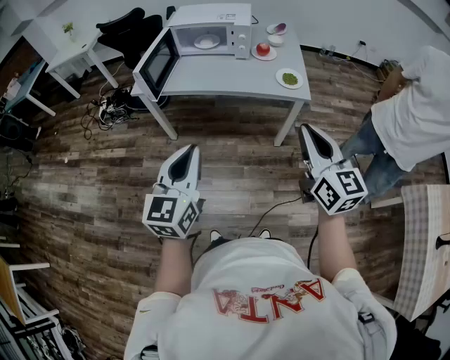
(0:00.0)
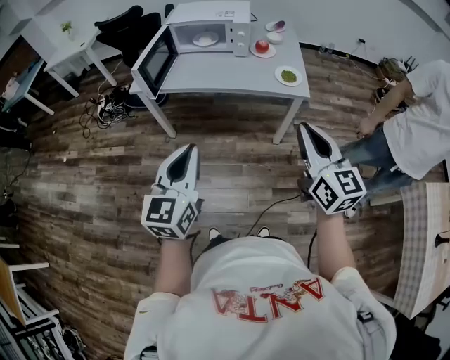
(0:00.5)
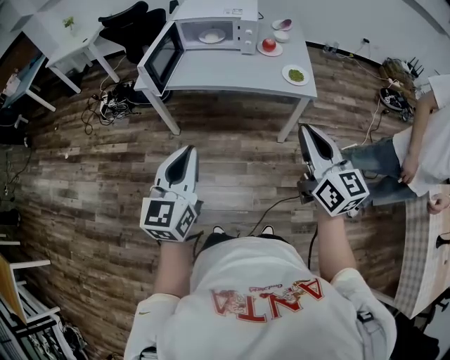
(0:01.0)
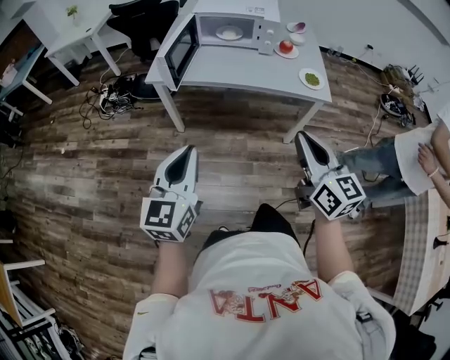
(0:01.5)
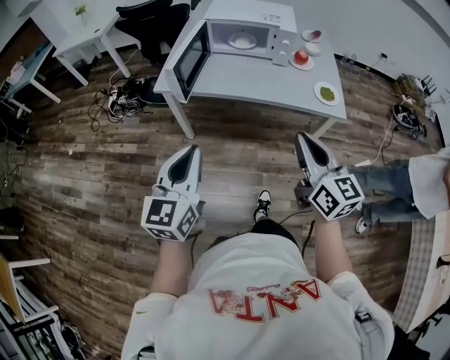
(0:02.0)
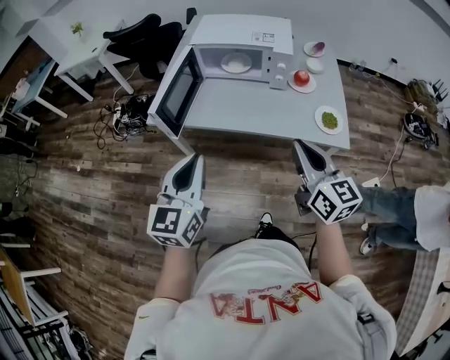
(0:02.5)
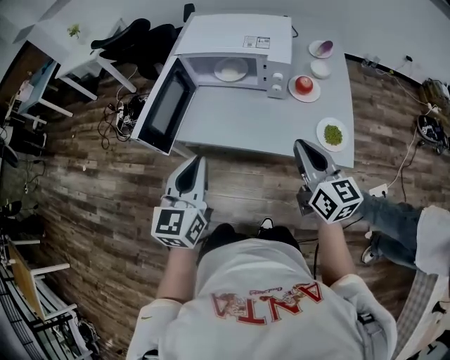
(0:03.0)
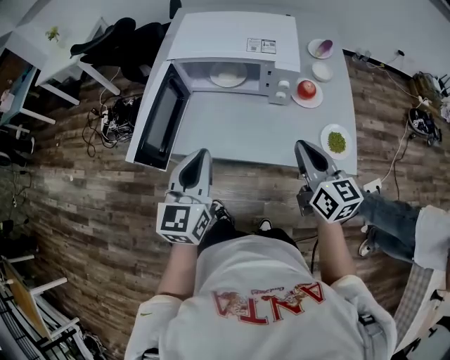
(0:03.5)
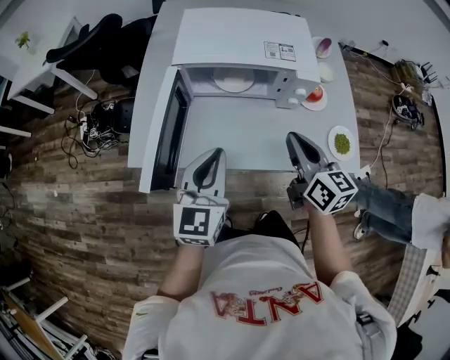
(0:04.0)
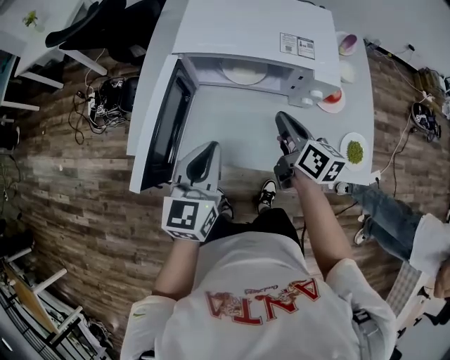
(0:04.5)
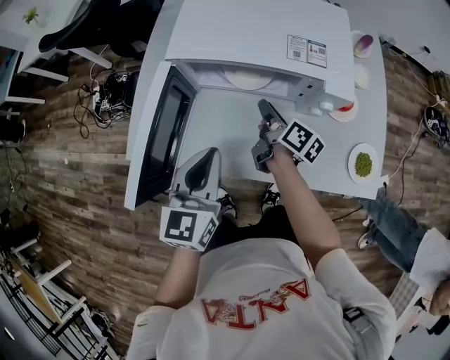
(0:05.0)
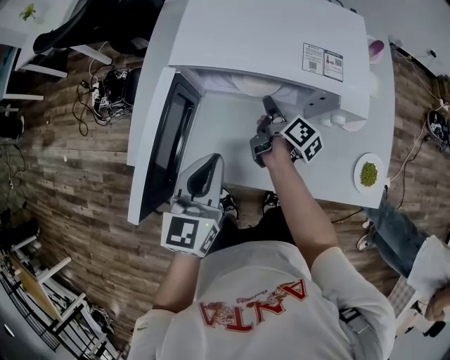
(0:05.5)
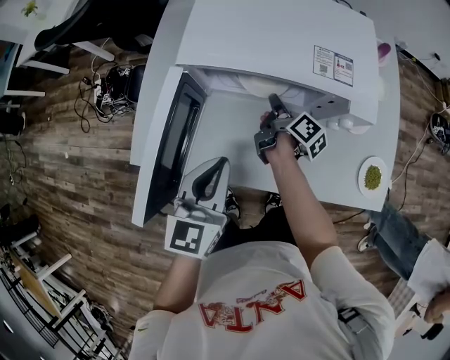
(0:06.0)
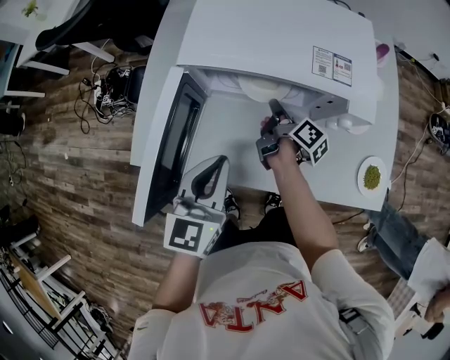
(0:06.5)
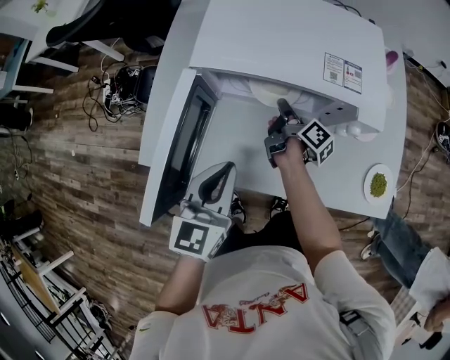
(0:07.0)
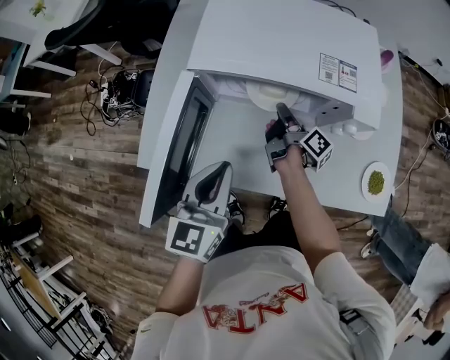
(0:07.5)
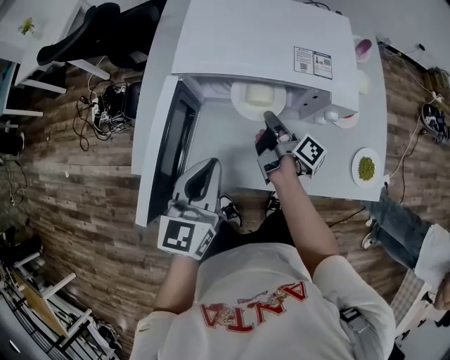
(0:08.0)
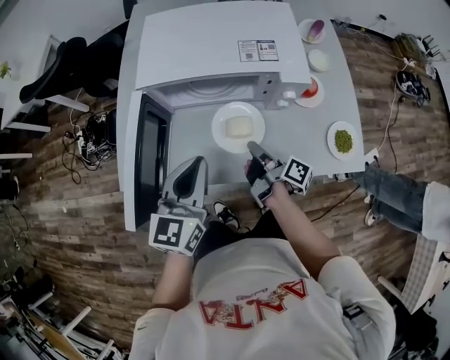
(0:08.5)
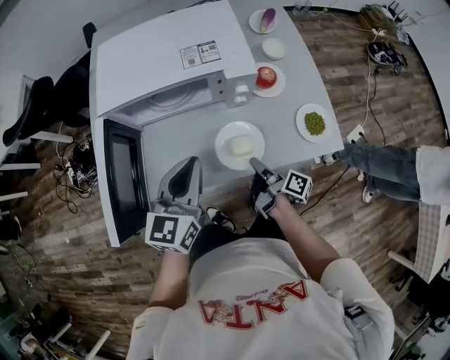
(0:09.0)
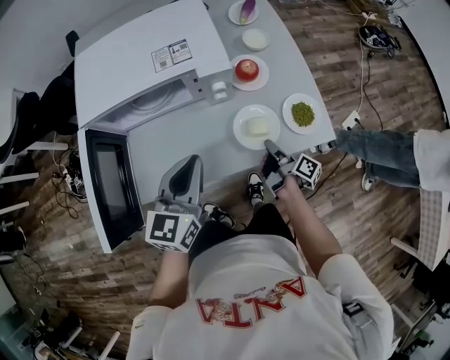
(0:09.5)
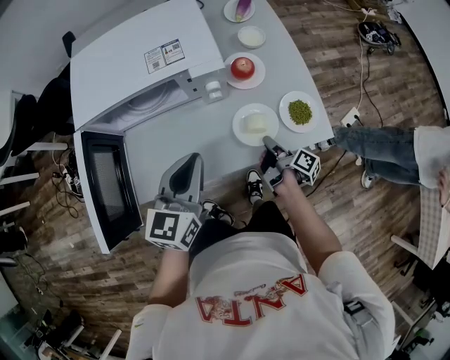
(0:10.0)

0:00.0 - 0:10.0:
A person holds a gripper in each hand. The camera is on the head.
0:00.0 - 0:02.0: The two grippers go roughly 20 cm to the left and forward.
0:02.0 - 0:04.0: The pair of grippers is taken forward, about 40 cm.
0:04.0 - 0:06.0: The right gripper heads forward and downward, covering about 30 cm, and rotates around the line of its fingers by approximately 60 degrees, clockwise from behind. The left gripper is displaced forward and downward by some 10 cm.
0:06.0 - 0:08.0: The right gripper travels backward by approximately 5 cm.
0:08.0 - 0:10.0: The right gripper shifts approximately 30 cm to the right and backward. The left gripper moves to the right, some 20 cm, and swivels roughly 20 degrees.

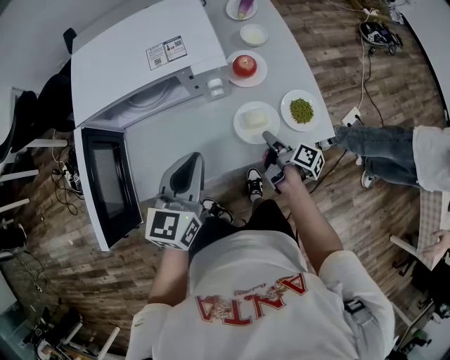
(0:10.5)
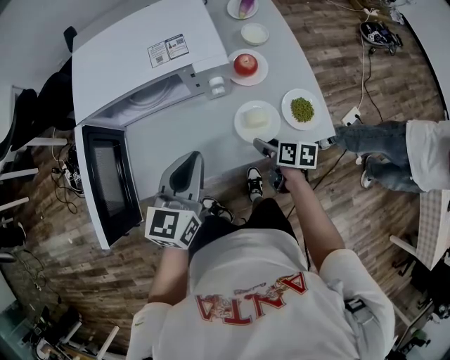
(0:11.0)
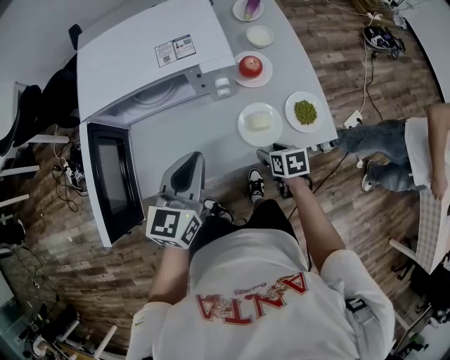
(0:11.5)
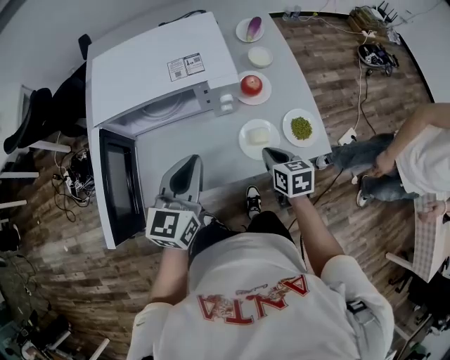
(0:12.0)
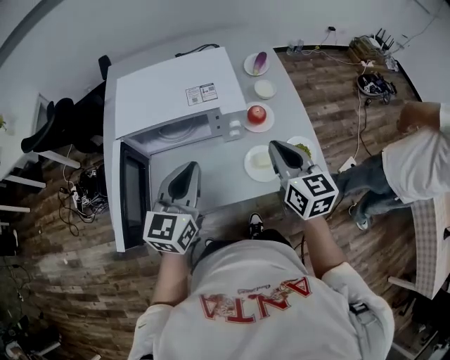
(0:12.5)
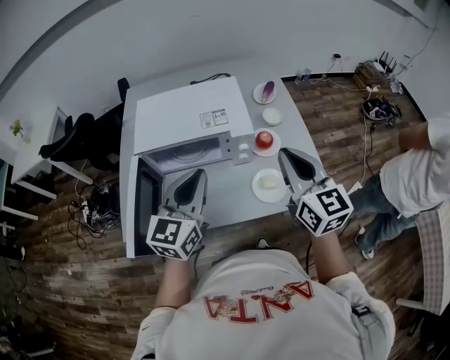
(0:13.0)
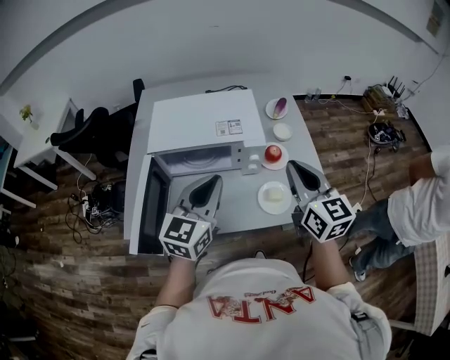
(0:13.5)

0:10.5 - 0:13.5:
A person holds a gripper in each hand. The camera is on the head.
0:10.5 - 0:12.0: The right gripper shifts some 10 cm upward, rotates around the line of its fingers by approximately 60 degrees, counterclockwise from behind, and closes.
0:12.0 - 0:13.5: The left gripper goes about 10 cm upward; the right gripper moves upward, approximately 30 cm, and points its fingers roughly 40 degrees further upward.

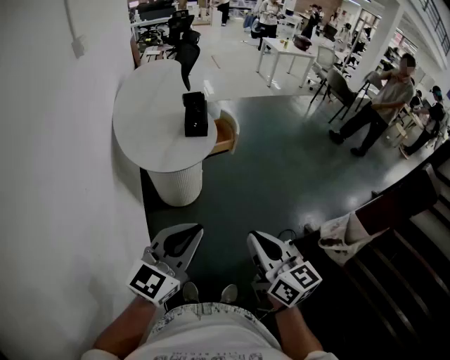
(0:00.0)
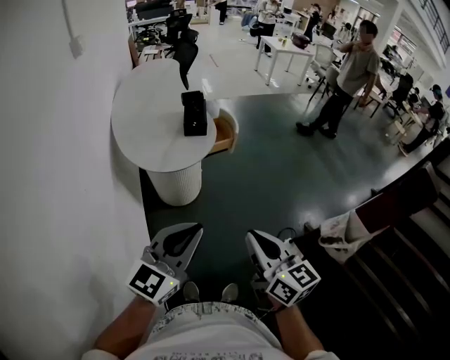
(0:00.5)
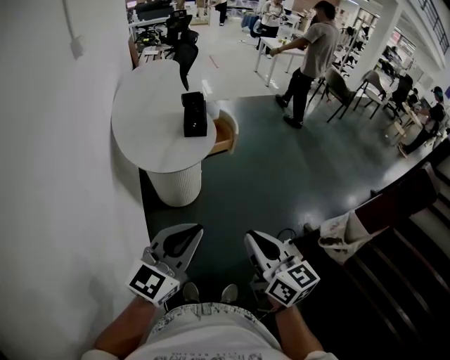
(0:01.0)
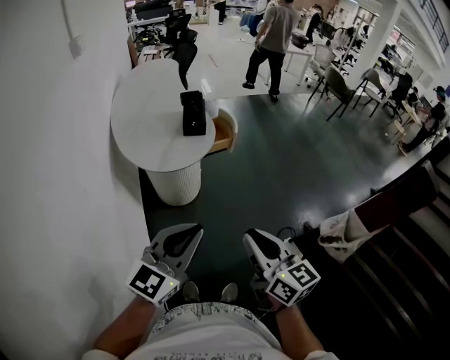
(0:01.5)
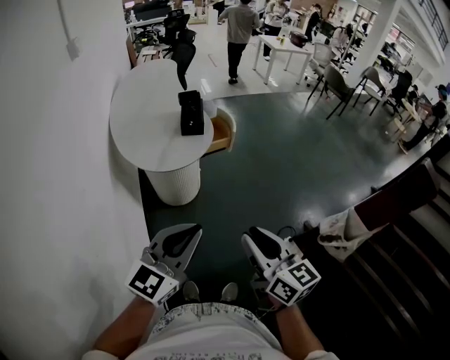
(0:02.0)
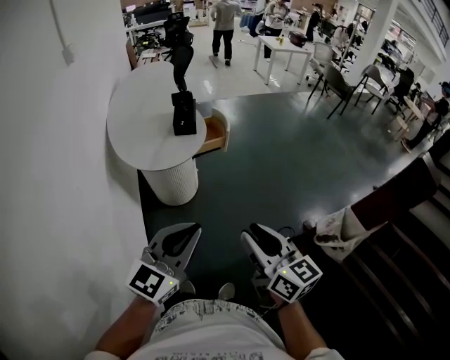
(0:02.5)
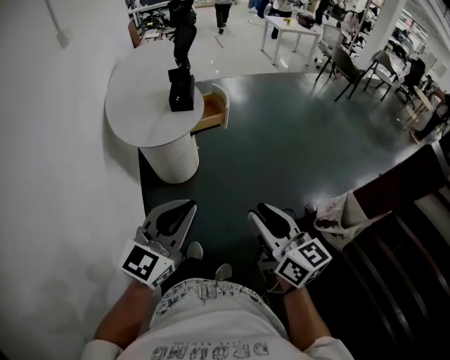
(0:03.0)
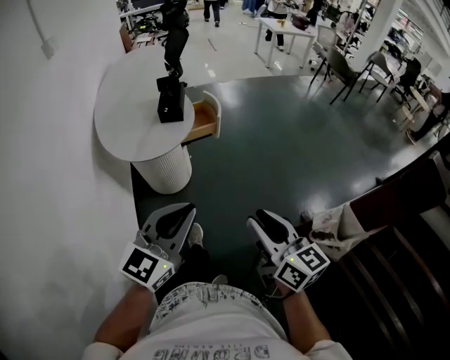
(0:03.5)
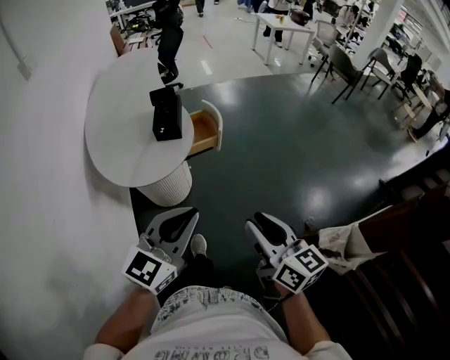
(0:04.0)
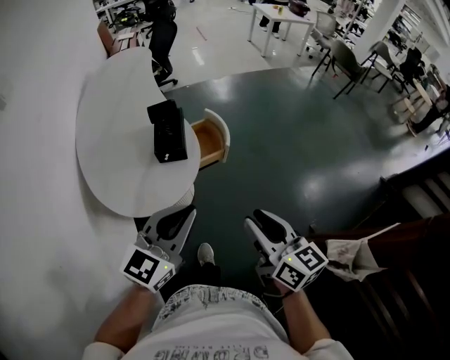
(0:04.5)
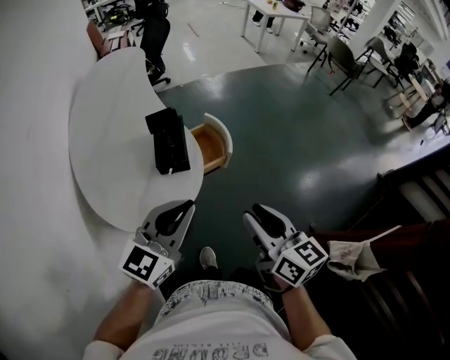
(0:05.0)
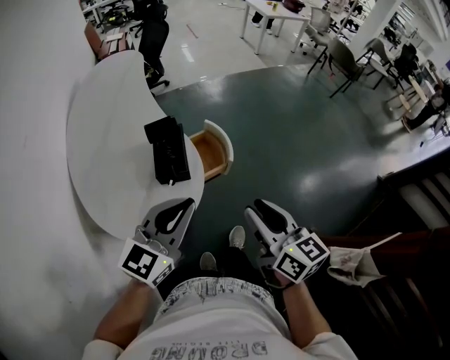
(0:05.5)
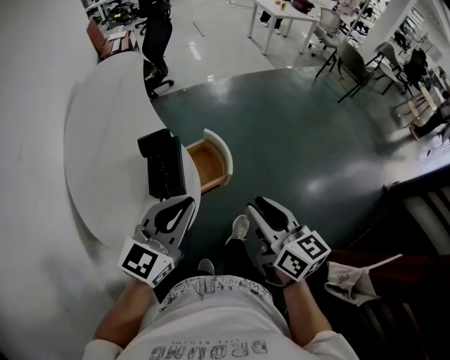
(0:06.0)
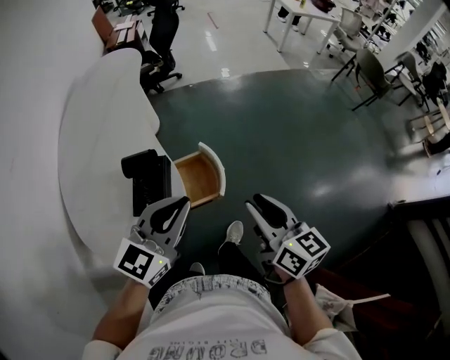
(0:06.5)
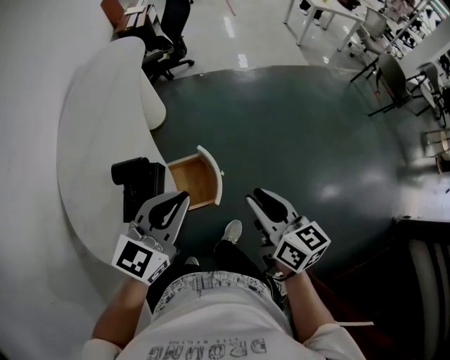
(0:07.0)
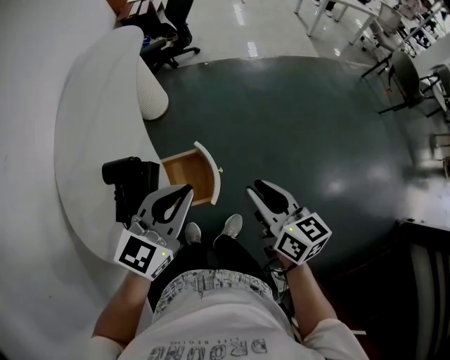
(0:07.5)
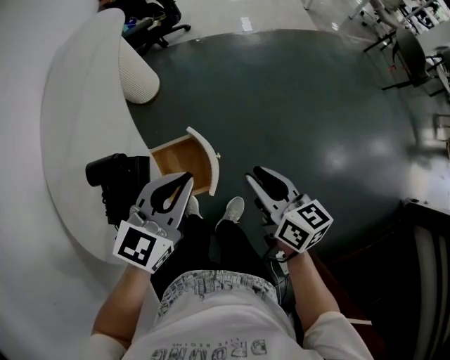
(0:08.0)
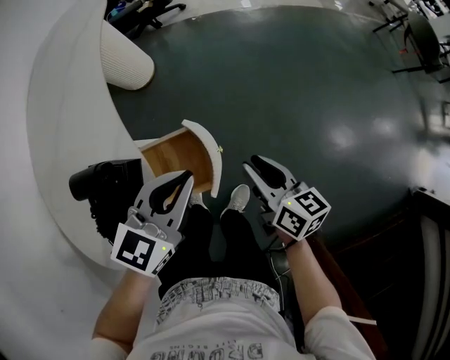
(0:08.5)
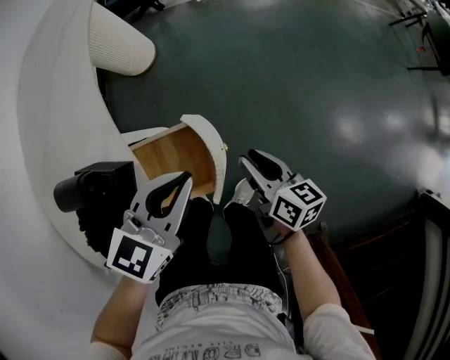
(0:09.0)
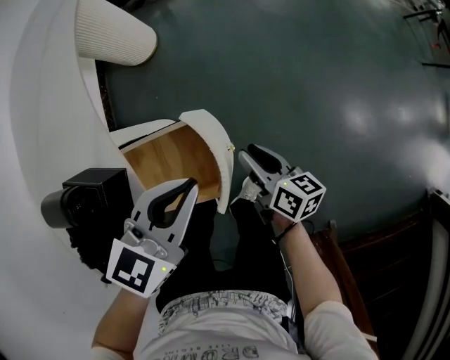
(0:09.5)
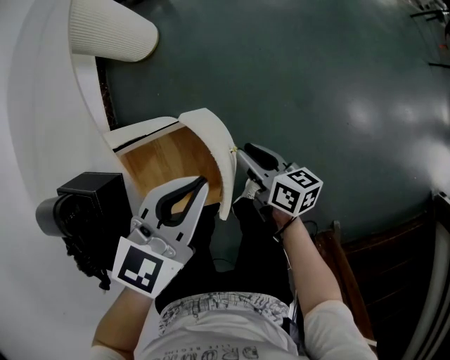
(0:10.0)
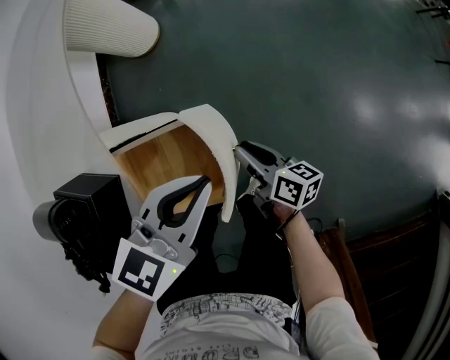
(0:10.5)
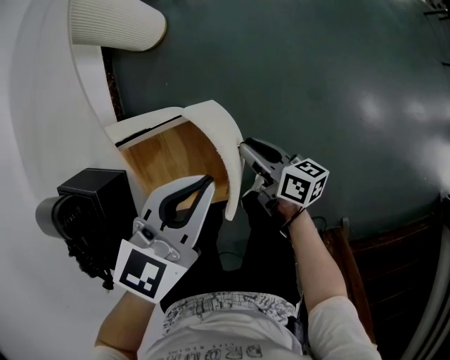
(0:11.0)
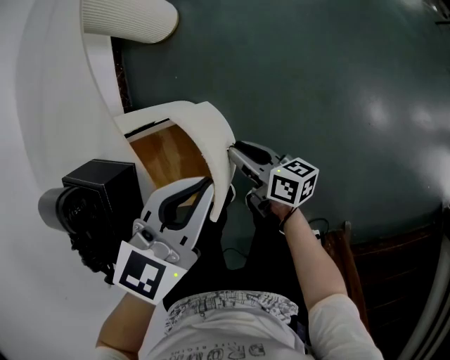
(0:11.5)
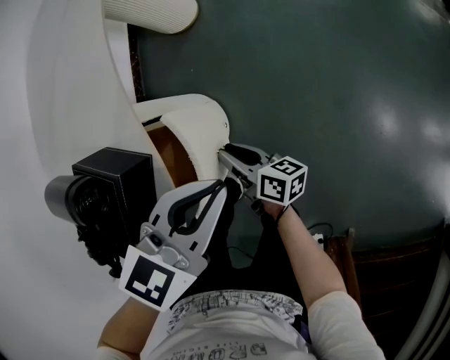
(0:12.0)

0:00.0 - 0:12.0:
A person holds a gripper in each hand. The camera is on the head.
0:00.0 - 0:02.0: The right gripper opens.
0:02.0 - 0:04.0: Both grippers travel together forward and to the right, some 20 cm.
0:04.0 - 0:06.0: Both grippers move forward, roughly 30 cm.
0:06.0 - 0:08.0: The right gripper moves forward, downward and to the right, roughly 30 cm; the left gripper is displaced forward, to the right and downward by some 25 cm.
0:08.0 - 0:10.0: The right gripper heads downward, covering some 30 cm, and swivels about 20 degrees, while the left gripper is displaced downward by some 15 cm.
0:10.0 - 0:12.0: The right gripper moves to the left, about 15 cm, and rotates approximately 20 degrees.

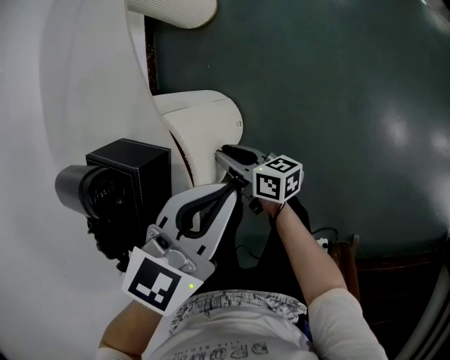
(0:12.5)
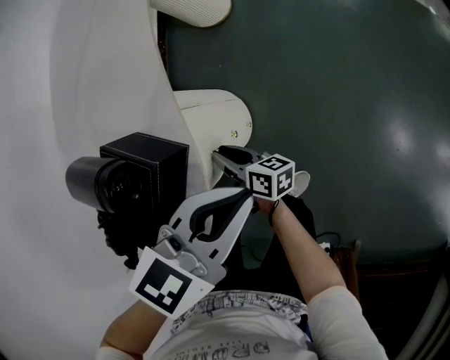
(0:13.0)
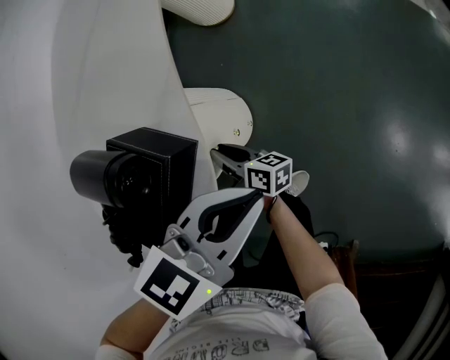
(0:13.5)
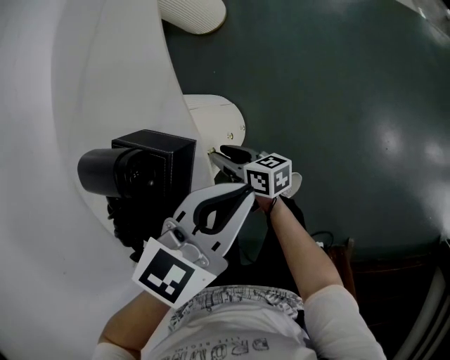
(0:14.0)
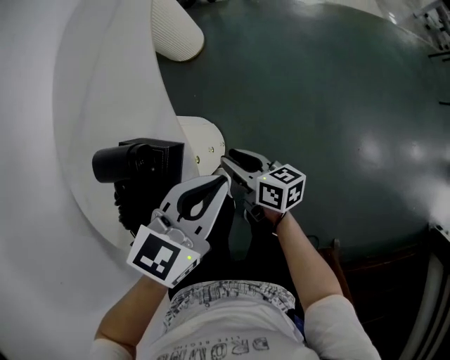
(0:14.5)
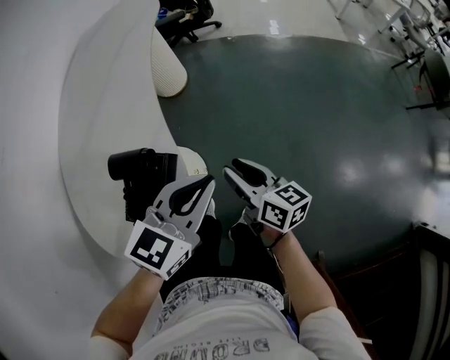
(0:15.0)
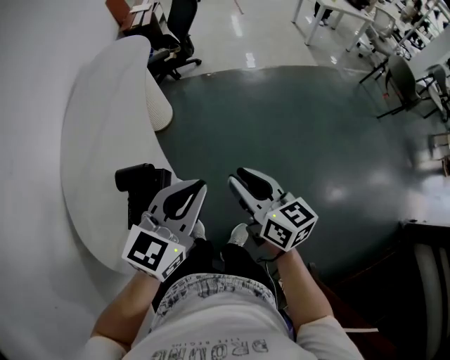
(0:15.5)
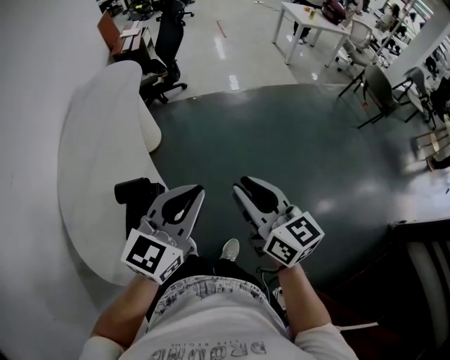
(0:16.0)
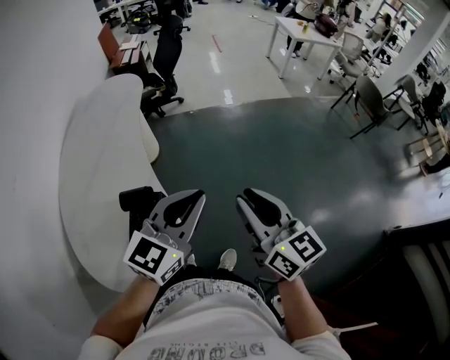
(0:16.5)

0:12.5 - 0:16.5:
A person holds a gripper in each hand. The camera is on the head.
0:12.5 - 0:14.5: The right gripper is displaced upward and to the right by roughly 15 cm, while the left gripper shifts roughly 5 cm upward.
0:14.5 - 0:16.5: The right gripper heads upward, covering some 40 cm, and turns by about 50 degrees; the left gripper heads upward, covering roughly 25 cm, and turns by some 30 degrees.
